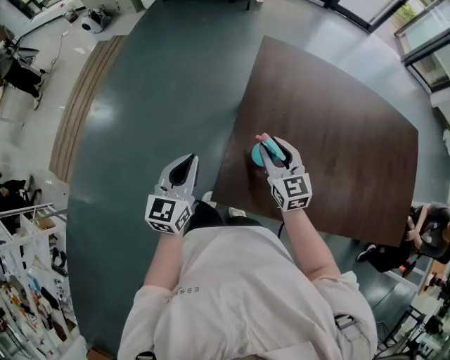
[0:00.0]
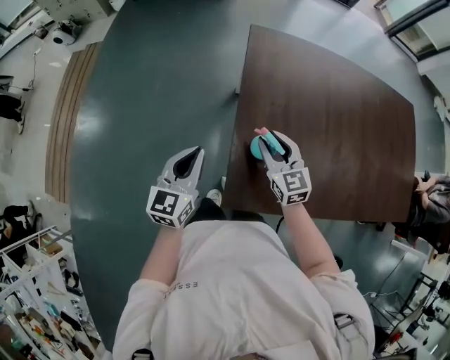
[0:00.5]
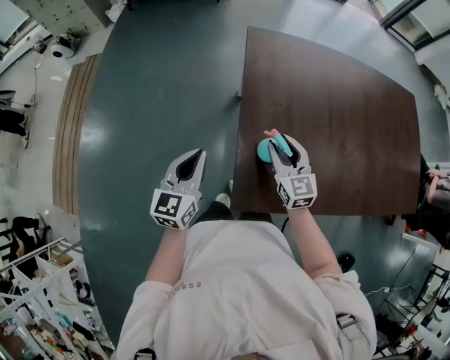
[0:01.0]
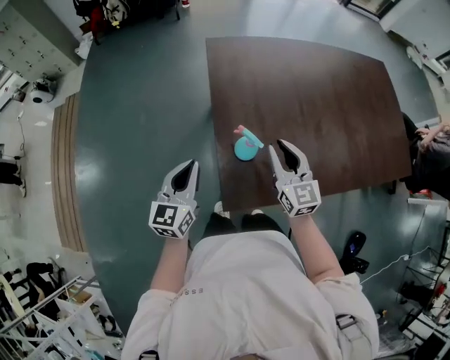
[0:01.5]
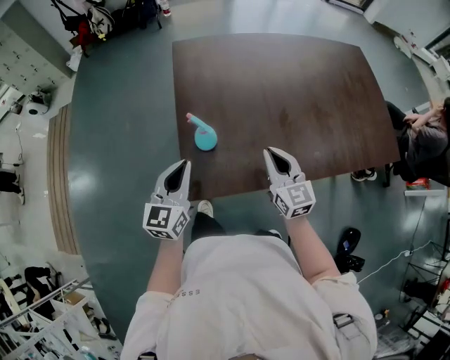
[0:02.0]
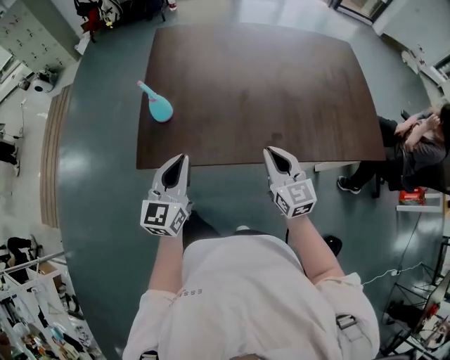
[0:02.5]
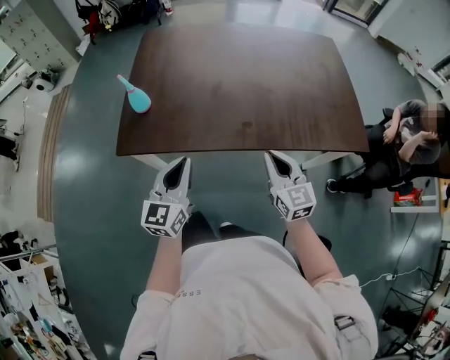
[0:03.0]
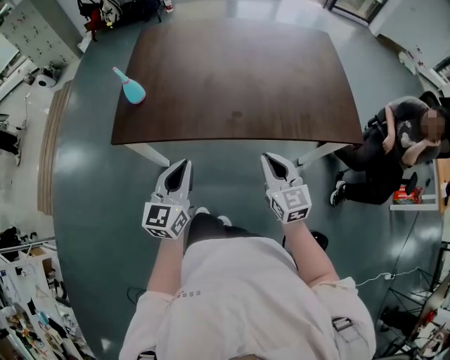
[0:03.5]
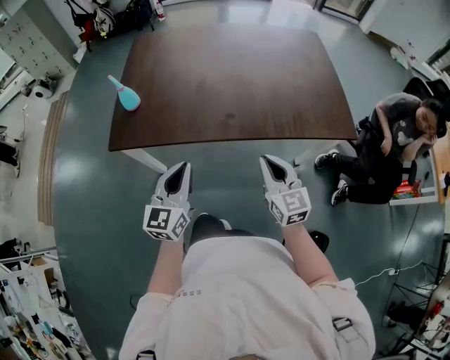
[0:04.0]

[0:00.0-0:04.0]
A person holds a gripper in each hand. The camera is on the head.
0:00.0 to 0:02.0: The right gripper is displaced to the right and backward by approximately 20 cm, changes its angle by about 30 degrees, and closes; the left gripper goes some 15 cm to the right, and turns by approximately 20 degrees.
0:02.0 to 0:04.0: Both grippers travel together to the right and backward, approximately 35 cm.

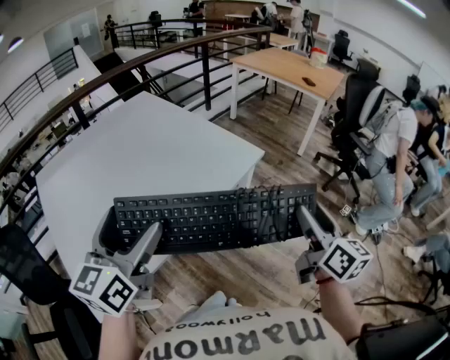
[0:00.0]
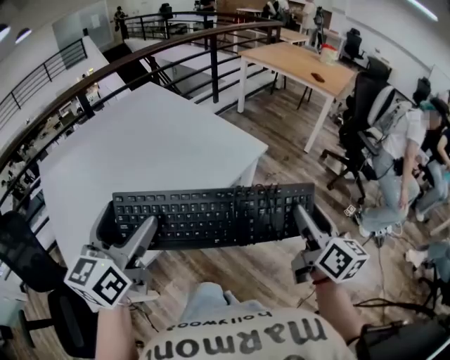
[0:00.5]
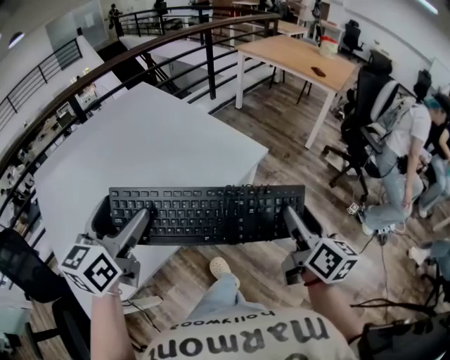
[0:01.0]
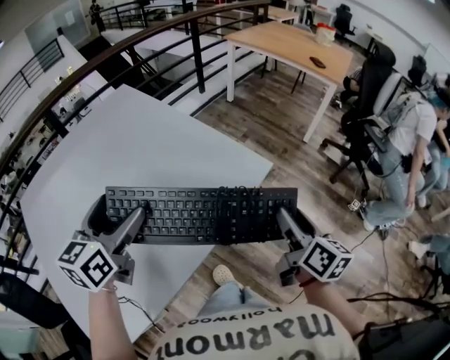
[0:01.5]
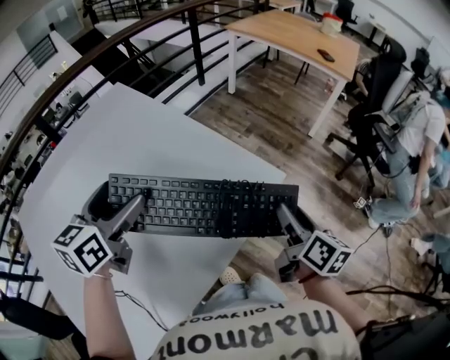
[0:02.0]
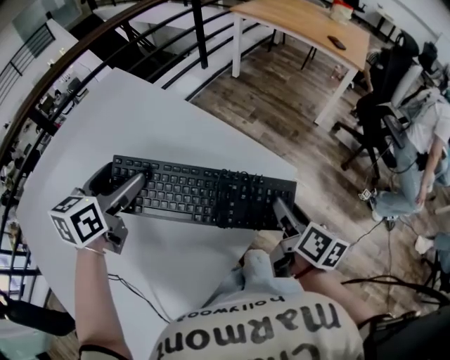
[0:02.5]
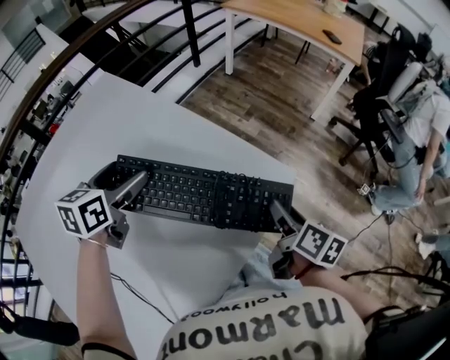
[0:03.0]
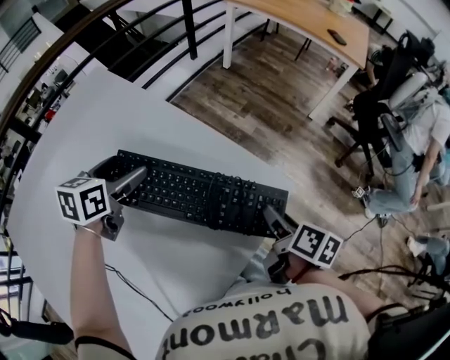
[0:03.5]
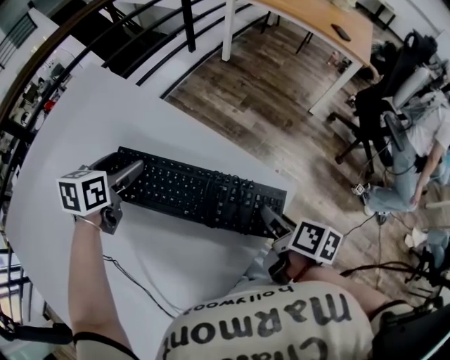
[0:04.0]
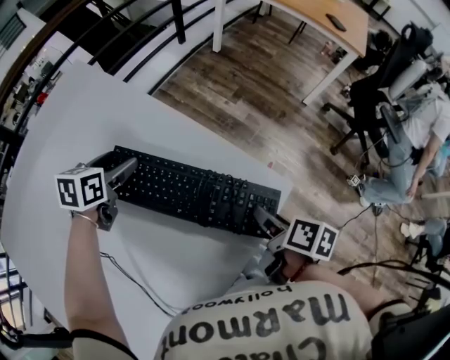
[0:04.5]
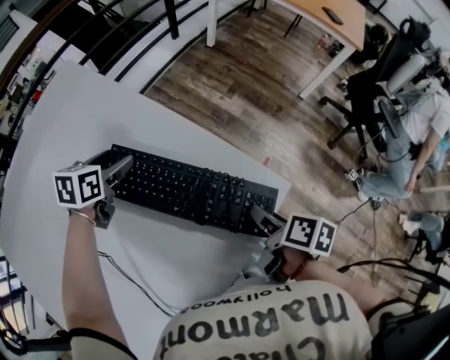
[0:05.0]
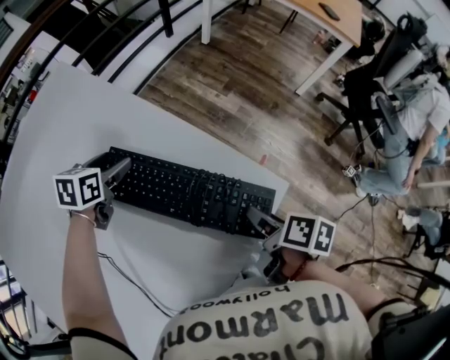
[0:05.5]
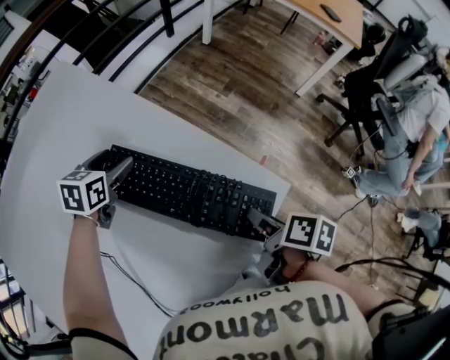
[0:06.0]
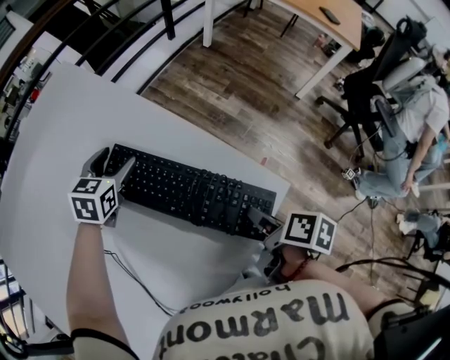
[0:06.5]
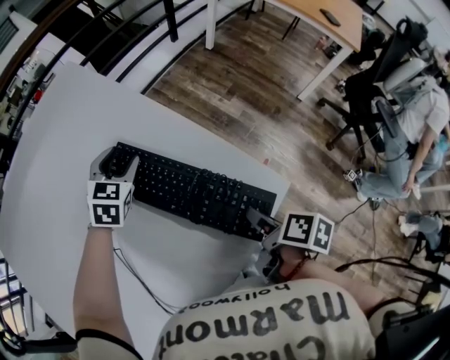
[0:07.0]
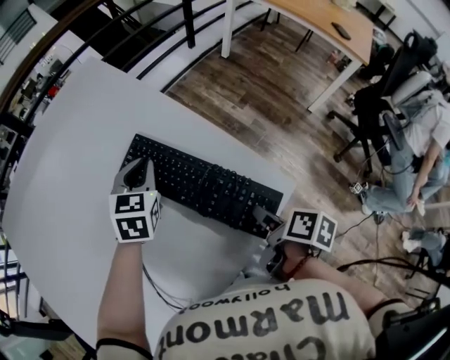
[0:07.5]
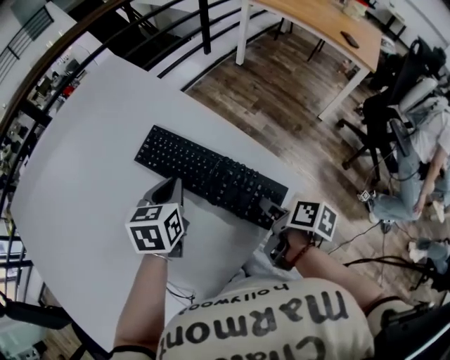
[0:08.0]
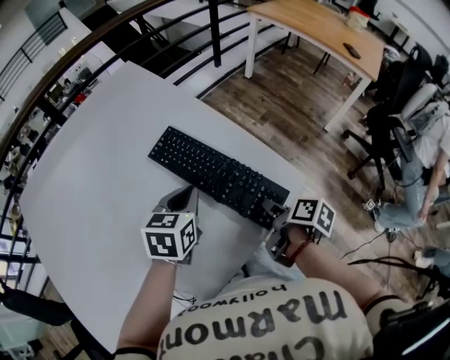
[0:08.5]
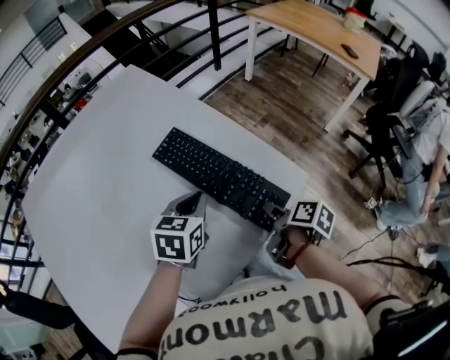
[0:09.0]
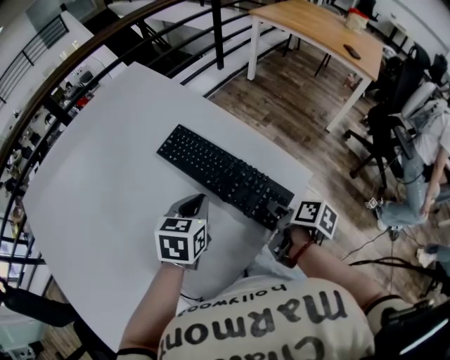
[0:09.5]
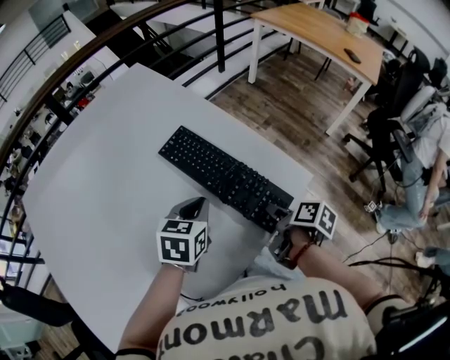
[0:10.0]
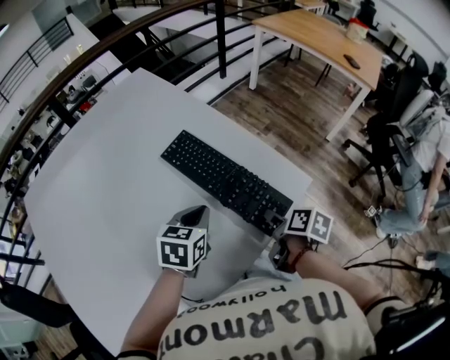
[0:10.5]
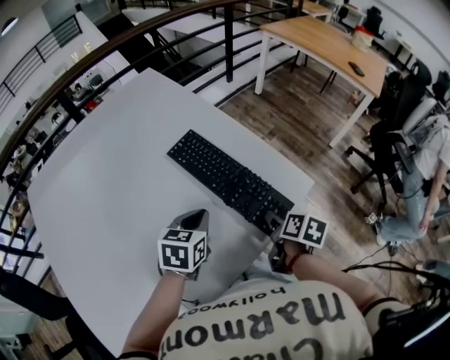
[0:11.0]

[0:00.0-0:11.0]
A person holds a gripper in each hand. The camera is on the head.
0:00.0 to 0:02.0: The right gripper goes about 25 cm forward and to the left, and turns by some 20 degrees. The left gripper is displaced forward by approximately 30 cm, and turns by some 20 degrees.
0:02.0 to 0:03.5: The right gripper shifts approximately 10 cm downward, and turns by some 20 degrees; the left gripper goes some 20 cm forward and downward.
0:03.5 to 0:05.5: The left gripper travels downward and forward by approximately 10 cm.
0:05.5 to 0:07.5: The left gripper heads backward and upward, covering roughly 10 cm, turns by roughly 30 degrees, and closes.
0:07.5 to 0:09.0: The left gripper heads backward, covering approximately 15 cm.
0:09.0 to 0:11.0: The left gripper moves roughly 5 cm; the right gripper rotates about 20 degrees.

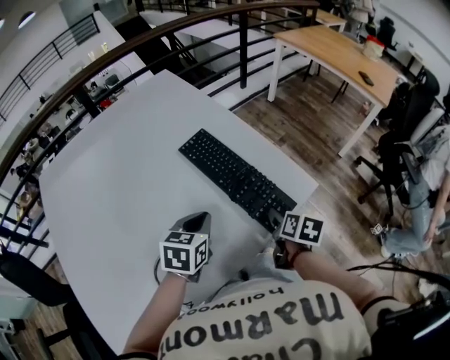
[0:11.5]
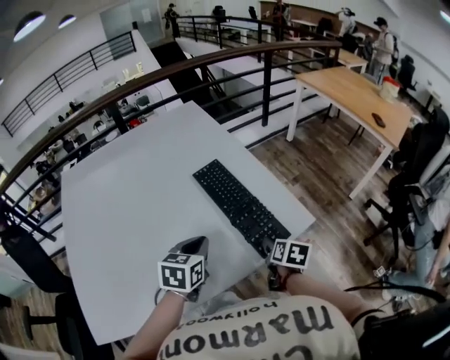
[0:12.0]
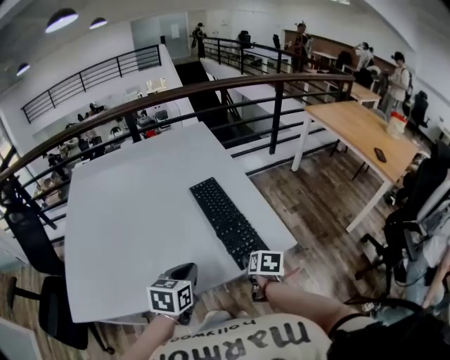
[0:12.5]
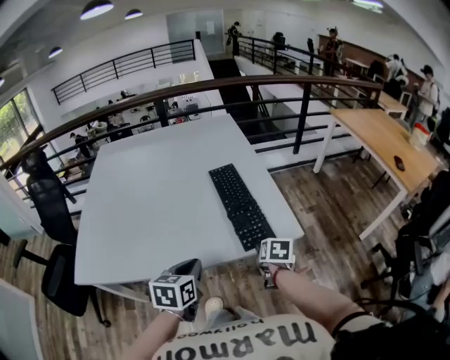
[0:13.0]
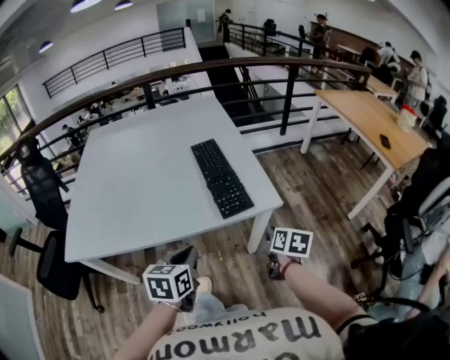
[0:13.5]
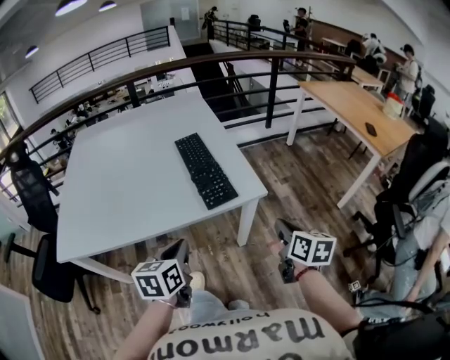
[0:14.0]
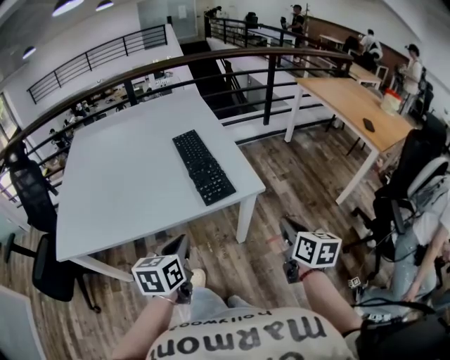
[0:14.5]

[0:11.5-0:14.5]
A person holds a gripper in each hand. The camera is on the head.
0:11.5 to 0:13.0: The left gripper shifts about 15 cm backward, and changes its angle by approximately 30 degrees. Meanwhile the right gripper swivels about 40 degrees.
0:13.0 to 0:14.5: The right gripper heads to the right, backward and upward, covering roughly 25 cm, turns by roughly 30 degrees, and closes up. Meanwhile the left gripper goes roughly 10 cm to the right and backward.

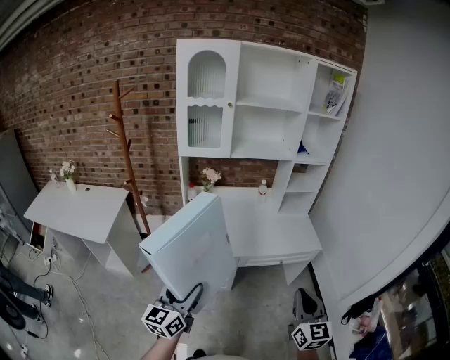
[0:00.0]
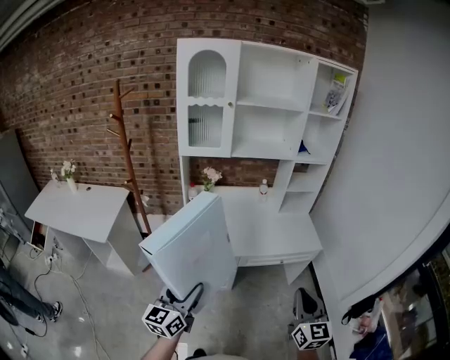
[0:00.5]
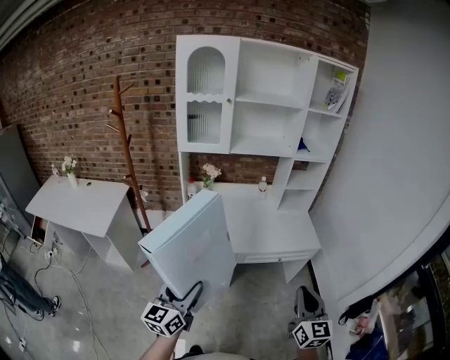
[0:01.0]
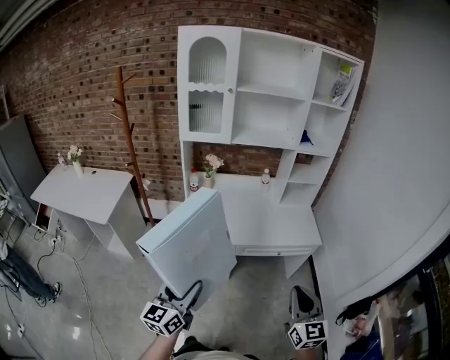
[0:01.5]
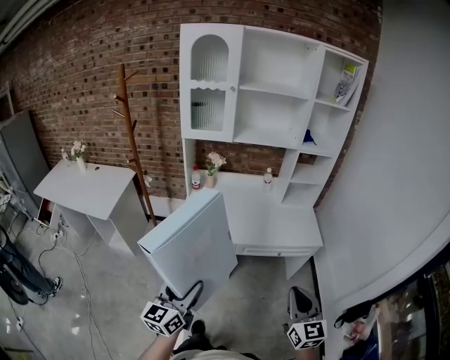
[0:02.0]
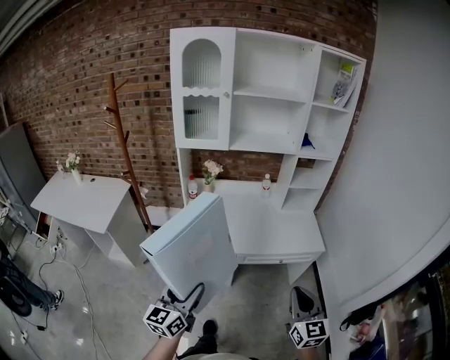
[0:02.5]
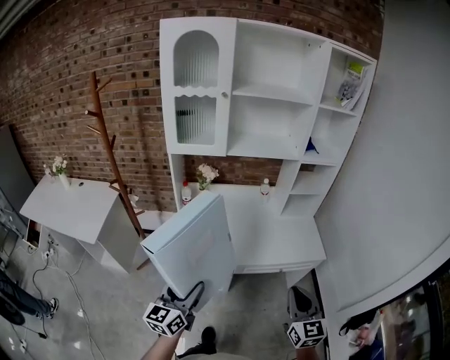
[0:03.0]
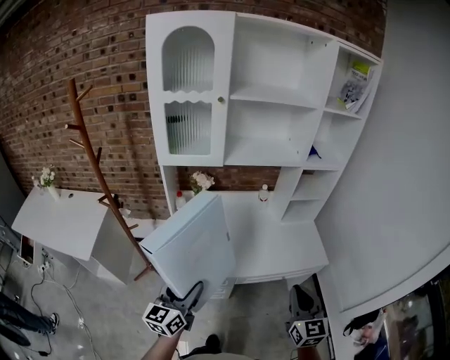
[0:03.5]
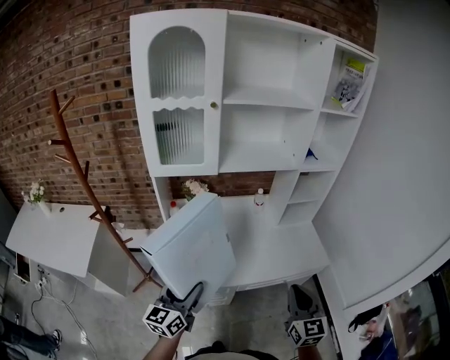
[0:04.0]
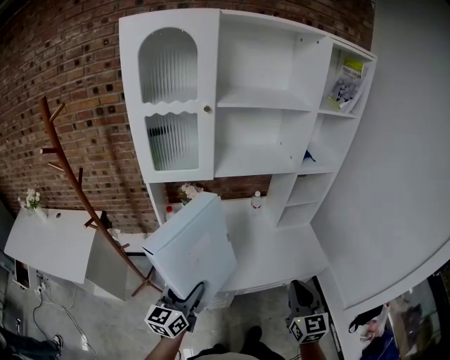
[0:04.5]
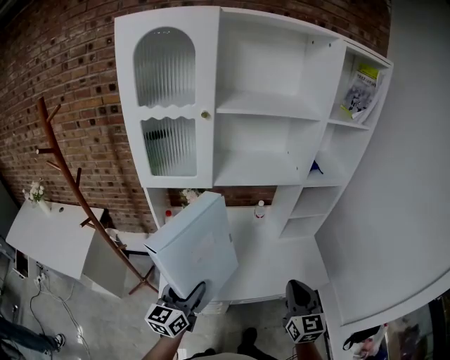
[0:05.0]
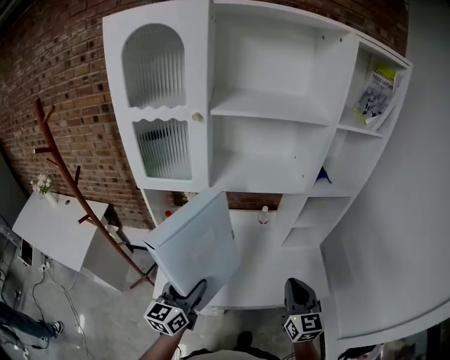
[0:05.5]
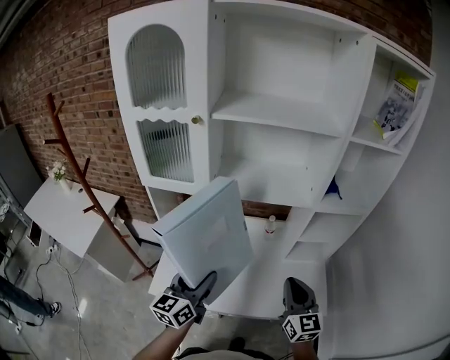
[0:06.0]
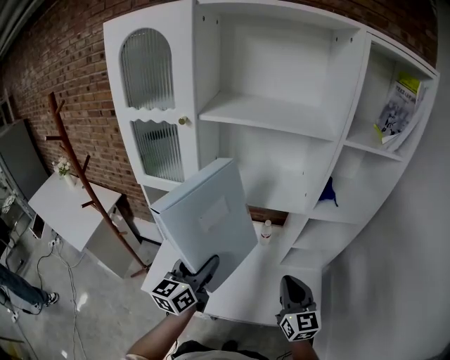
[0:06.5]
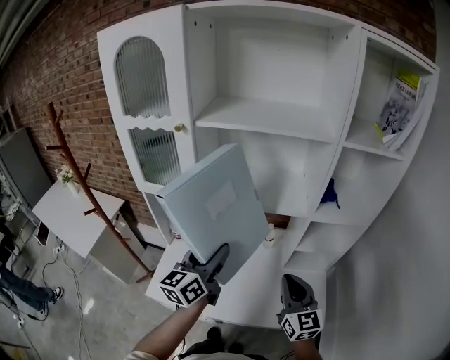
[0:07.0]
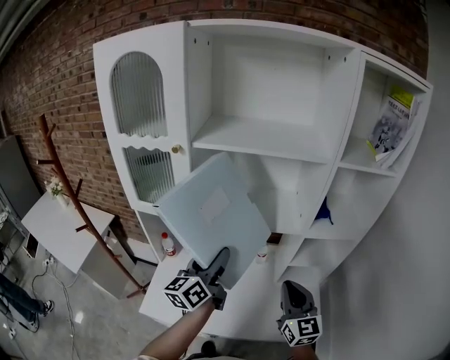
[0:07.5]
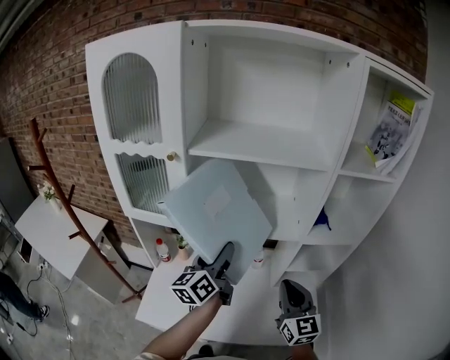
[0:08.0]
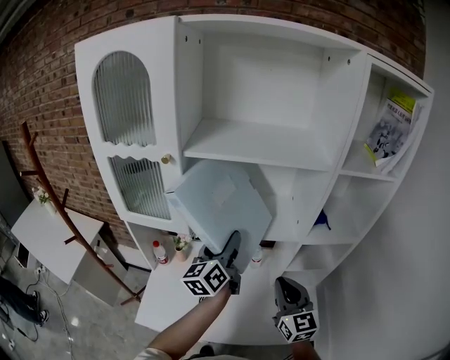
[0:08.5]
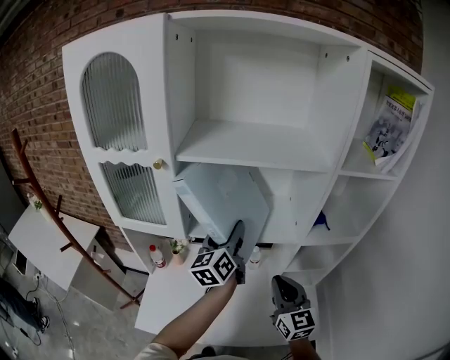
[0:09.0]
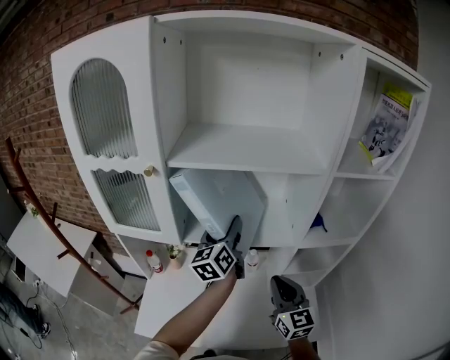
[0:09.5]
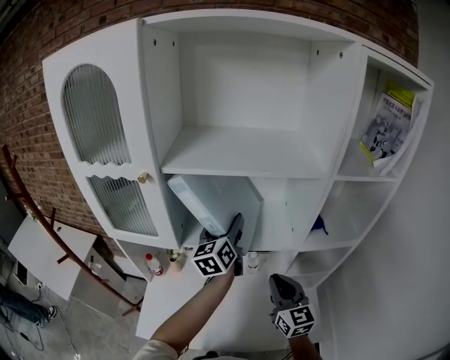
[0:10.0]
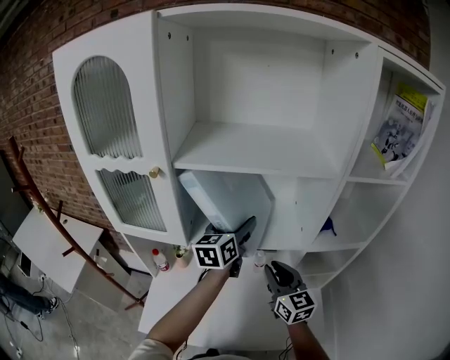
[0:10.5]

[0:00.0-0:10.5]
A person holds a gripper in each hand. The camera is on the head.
0:00.0 to 0:02.0: Both grippers move to the right, roughly 5 cm.
0:02.0 to 0:04.0: The grippers both shift forward by approximately 30 cm.
0:04.0 to 0:06.5: The left gripper shifts roughly 30 cm forward and to the right. The right gripper shifts some 30 cm forward, and turns by roughly 20 degrees.
0:06.5 to 0:08.5: The right gripper travels forward by approximately 10 cm. The left gripper heads forward, covering about 15 cm.
0:08.5 to 0:10.5: The two grippers go approximately 10 cm forward.
